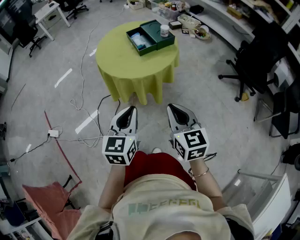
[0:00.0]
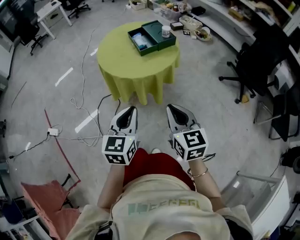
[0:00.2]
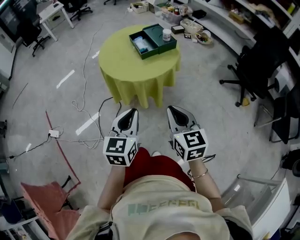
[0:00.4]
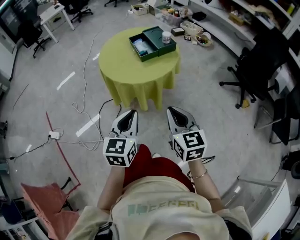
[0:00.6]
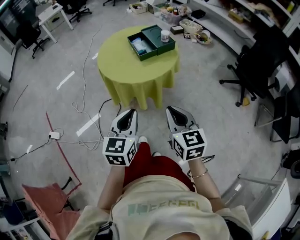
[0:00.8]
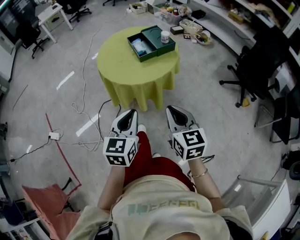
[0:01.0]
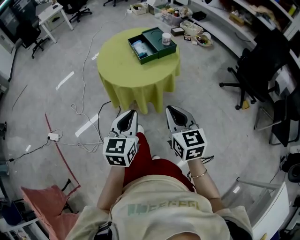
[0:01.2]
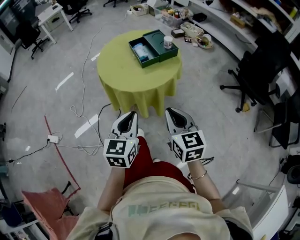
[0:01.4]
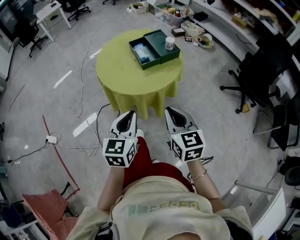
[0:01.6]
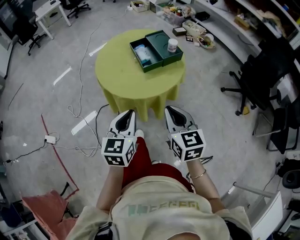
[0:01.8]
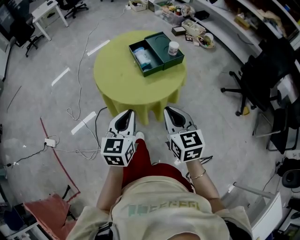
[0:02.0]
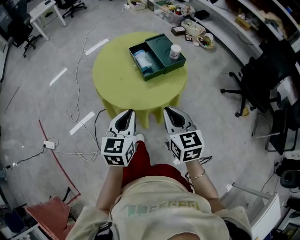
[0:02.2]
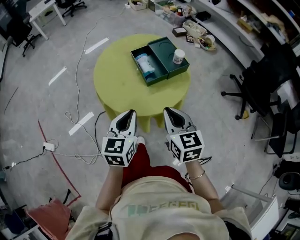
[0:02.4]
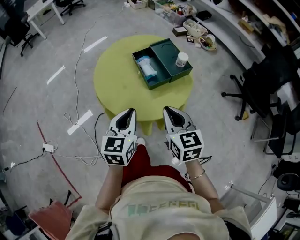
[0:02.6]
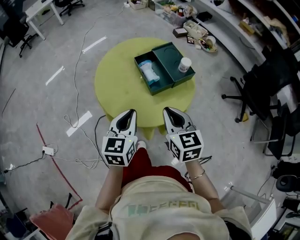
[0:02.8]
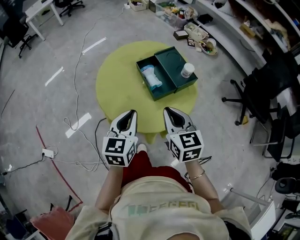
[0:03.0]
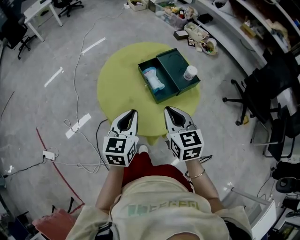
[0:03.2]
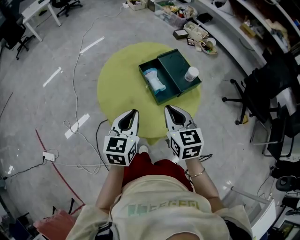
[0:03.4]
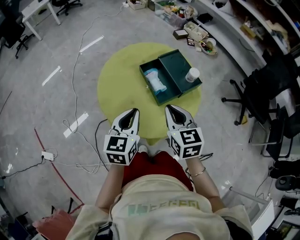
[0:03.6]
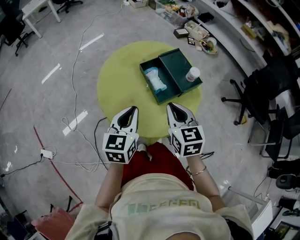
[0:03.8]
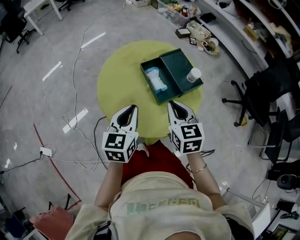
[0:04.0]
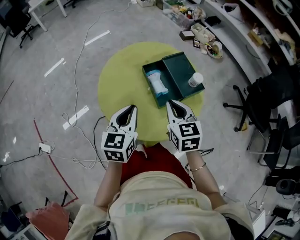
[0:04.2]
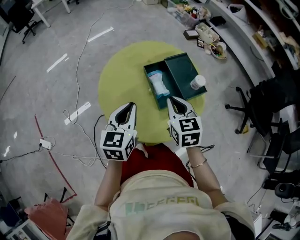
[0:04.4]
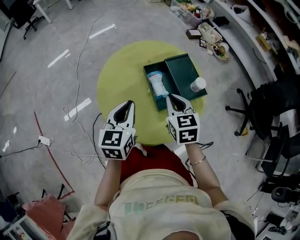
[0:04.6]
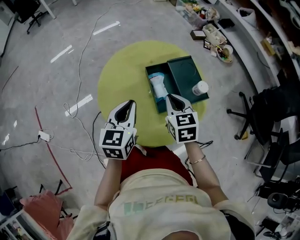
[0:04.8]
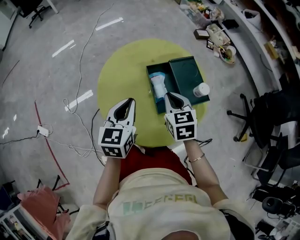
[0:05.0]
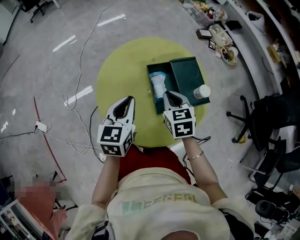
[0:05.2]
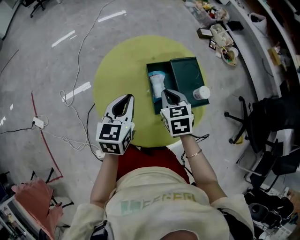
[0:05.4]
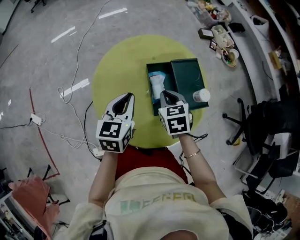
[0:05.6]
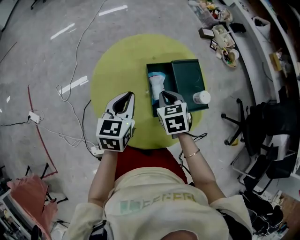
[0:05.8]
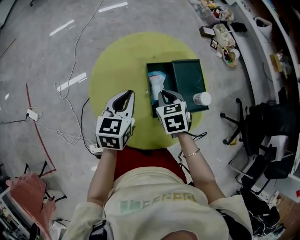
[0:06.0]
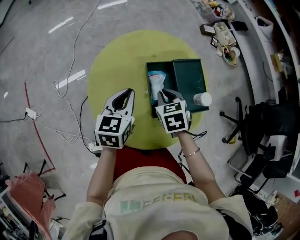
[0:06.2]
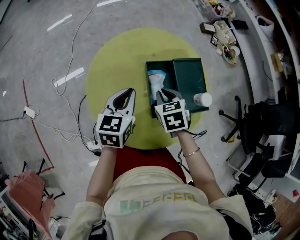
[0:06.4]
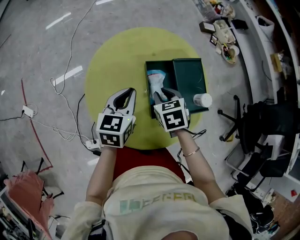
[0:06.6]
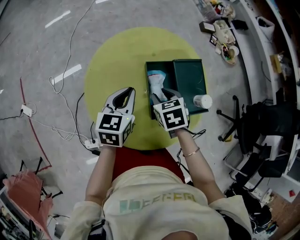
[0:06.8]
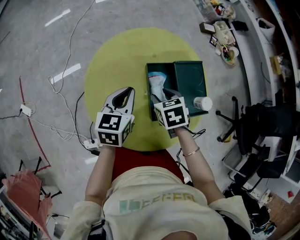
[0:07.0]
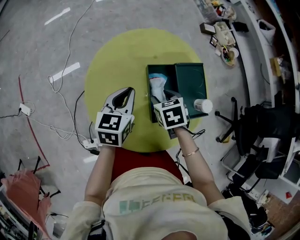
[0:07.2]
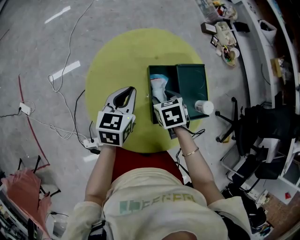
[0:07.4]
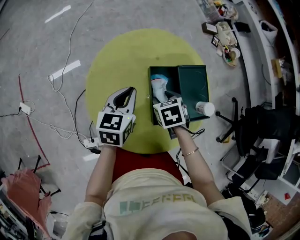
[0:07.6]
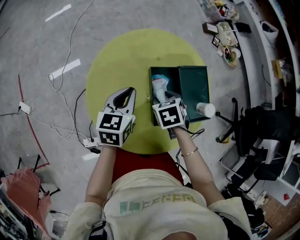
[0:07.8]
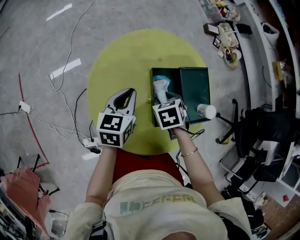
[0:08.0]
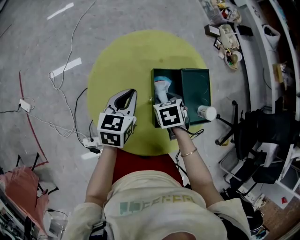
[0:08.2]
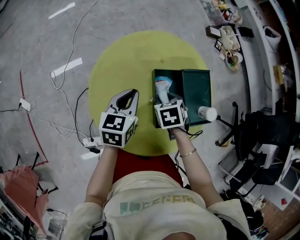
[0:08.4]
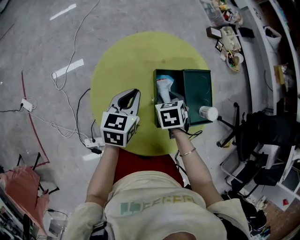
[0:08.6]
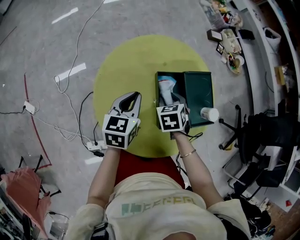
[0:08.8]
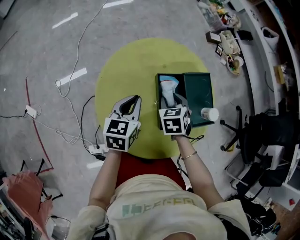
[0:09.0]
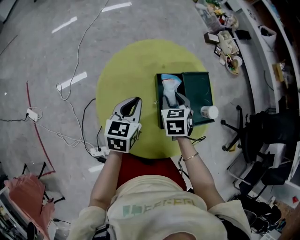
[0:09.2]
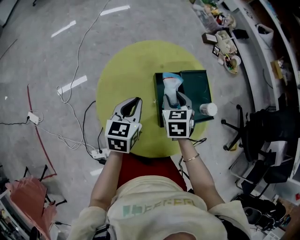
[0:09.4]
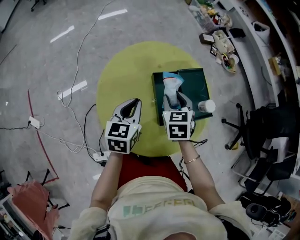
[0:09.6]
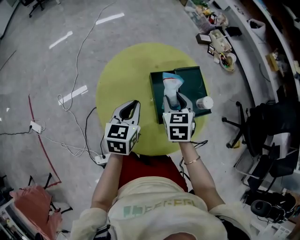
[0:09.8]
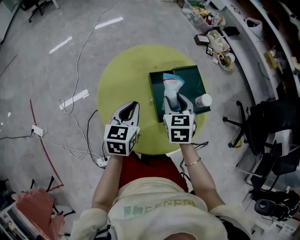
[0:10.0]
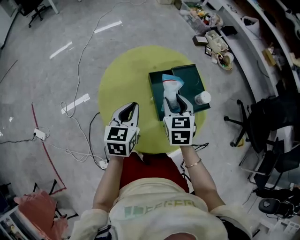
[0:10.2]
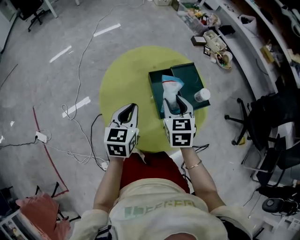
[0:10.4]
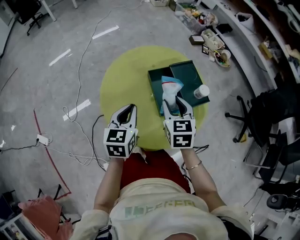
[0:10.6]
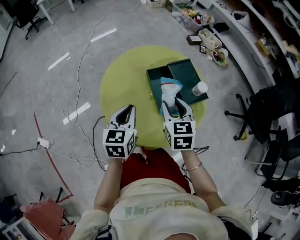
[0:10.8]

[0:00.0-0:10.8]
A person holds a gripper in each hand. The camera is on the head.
0:00.0 to 0:01.6: The two grippers go roughly 10 cm forward.
0:01.6 to 0:03.0: The grippers both shift forward by about 30 cm.
0:03.0 to 0:04.6: Both grippers move forward, some 15 cm.
0:04.6 to 0:06.2: The left gripper moves forward and downward, some 10 cm; the right gripper is displaced downward and forward by approximately 15 cm, and turns by some 30 degrees.
0:06.2 to 0:07.8: The left gripper shifts by about 5 cm; the right gripper shifts roughly 5 cm downward, and opens its fingers.
0:07.8 to 0:09.2: The right gripper changes place by about 5 cm, and turns by some 20 degrees.
0:09.2 to 0:10.8: Both grippers move backward and upward, approximately 15 cm. The right gripper changes its angle by roughly 20 degrees.

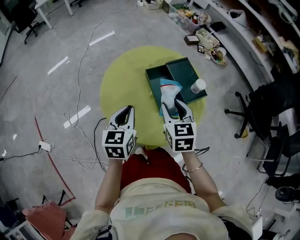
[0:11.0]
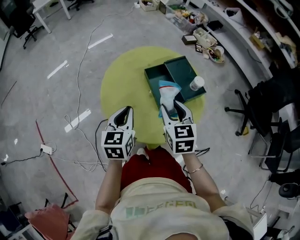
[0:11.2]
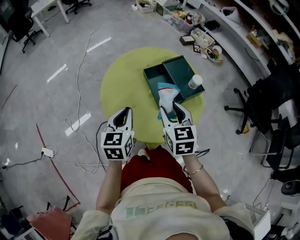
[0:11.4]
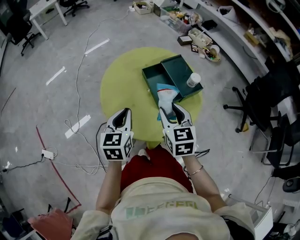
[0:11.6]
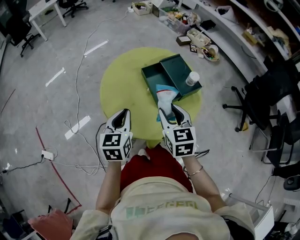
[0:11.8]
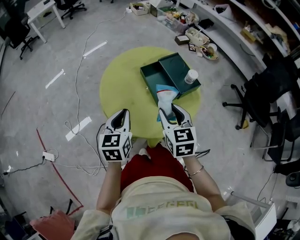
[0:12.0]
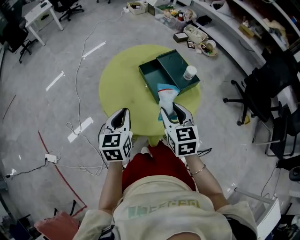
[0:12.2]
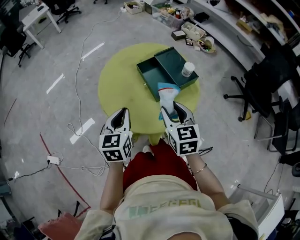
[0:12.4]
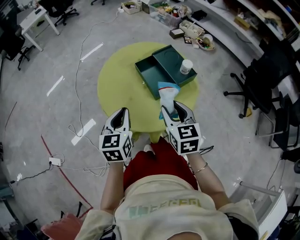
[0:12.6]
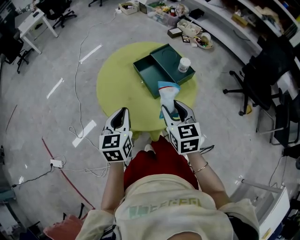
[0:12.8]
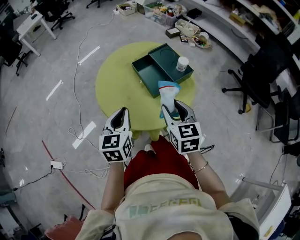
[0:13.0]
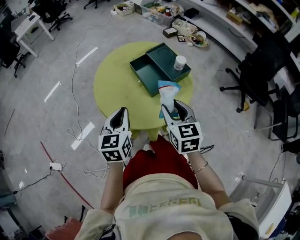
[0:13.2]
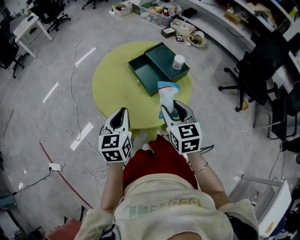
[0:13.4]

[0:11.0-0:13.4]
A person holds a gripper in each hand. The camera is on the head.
0:11.0 to 0:12.2: The two grippers go roughly 10 cm backward.
0:12.2 to 0:13.4: The right gripper shifts by about 5 cm.

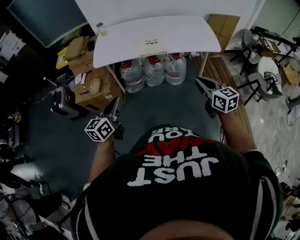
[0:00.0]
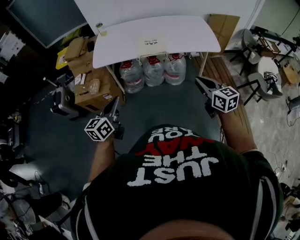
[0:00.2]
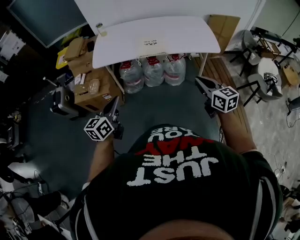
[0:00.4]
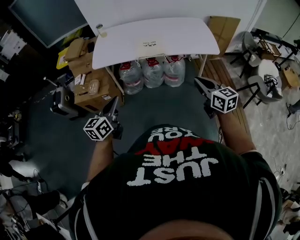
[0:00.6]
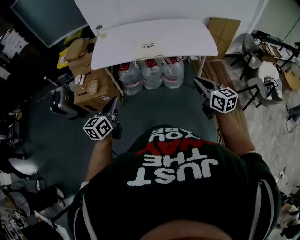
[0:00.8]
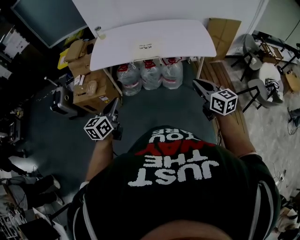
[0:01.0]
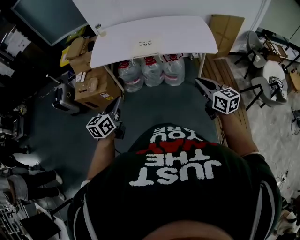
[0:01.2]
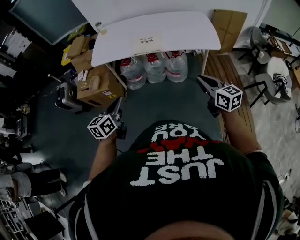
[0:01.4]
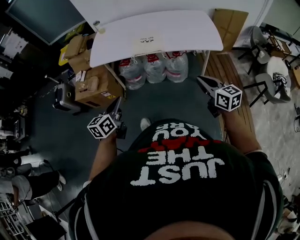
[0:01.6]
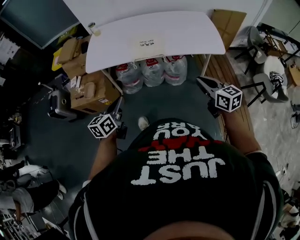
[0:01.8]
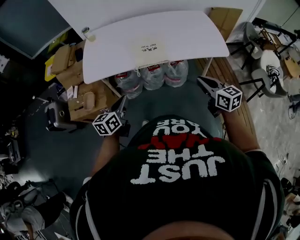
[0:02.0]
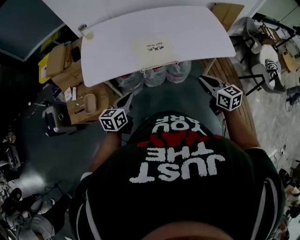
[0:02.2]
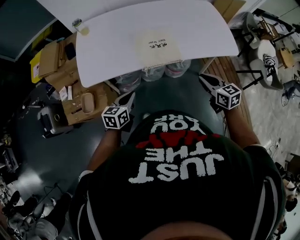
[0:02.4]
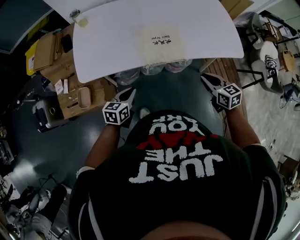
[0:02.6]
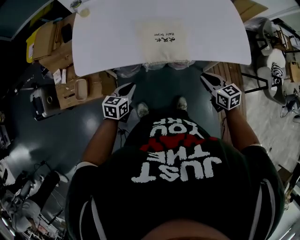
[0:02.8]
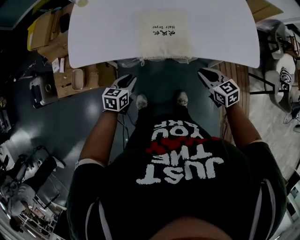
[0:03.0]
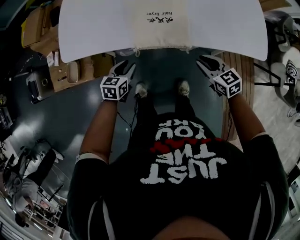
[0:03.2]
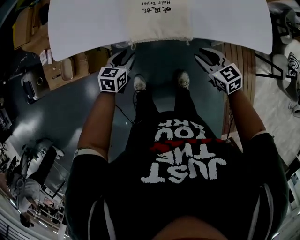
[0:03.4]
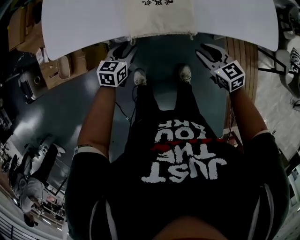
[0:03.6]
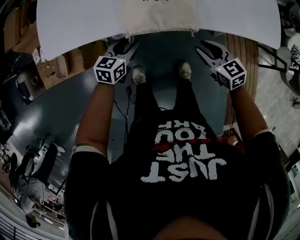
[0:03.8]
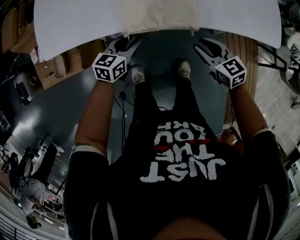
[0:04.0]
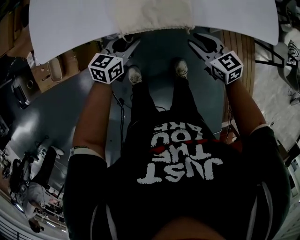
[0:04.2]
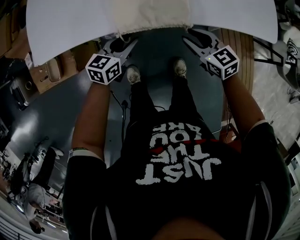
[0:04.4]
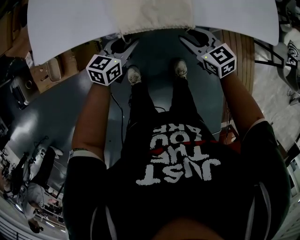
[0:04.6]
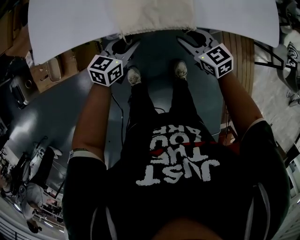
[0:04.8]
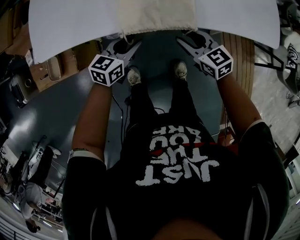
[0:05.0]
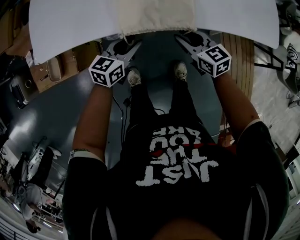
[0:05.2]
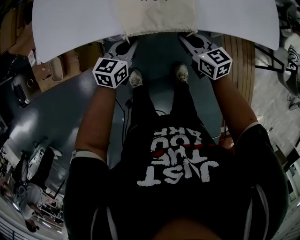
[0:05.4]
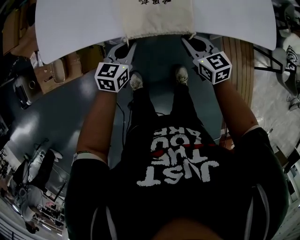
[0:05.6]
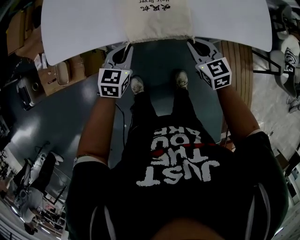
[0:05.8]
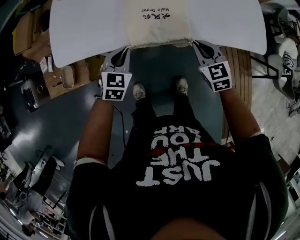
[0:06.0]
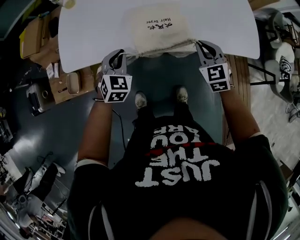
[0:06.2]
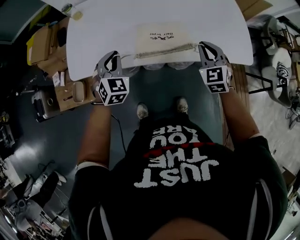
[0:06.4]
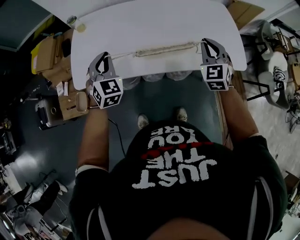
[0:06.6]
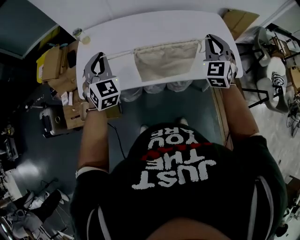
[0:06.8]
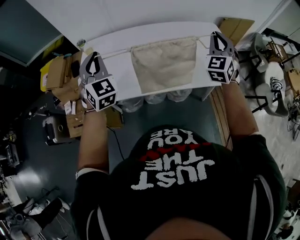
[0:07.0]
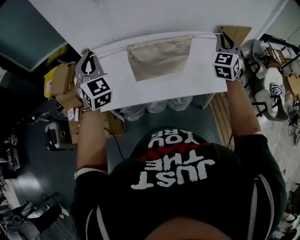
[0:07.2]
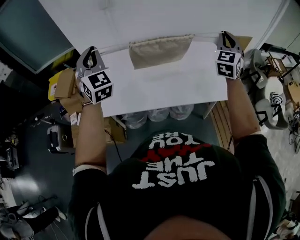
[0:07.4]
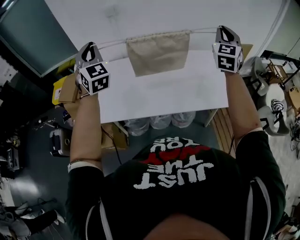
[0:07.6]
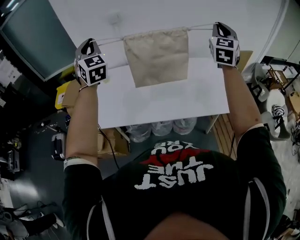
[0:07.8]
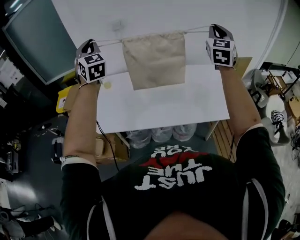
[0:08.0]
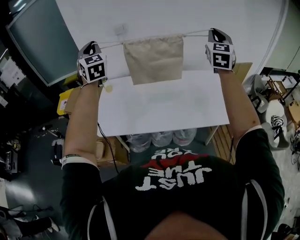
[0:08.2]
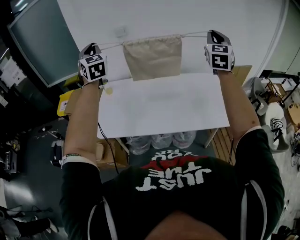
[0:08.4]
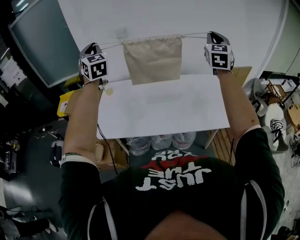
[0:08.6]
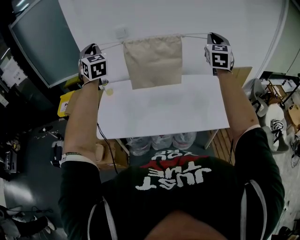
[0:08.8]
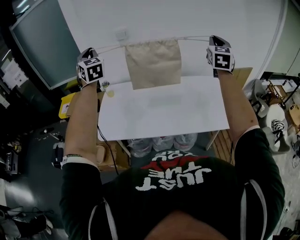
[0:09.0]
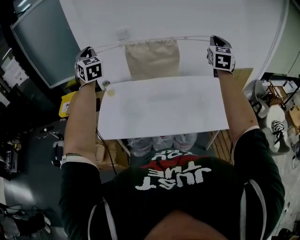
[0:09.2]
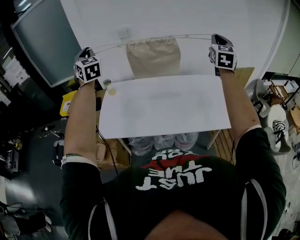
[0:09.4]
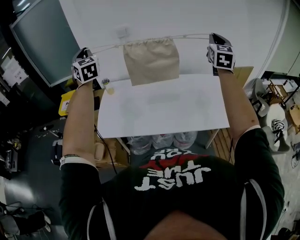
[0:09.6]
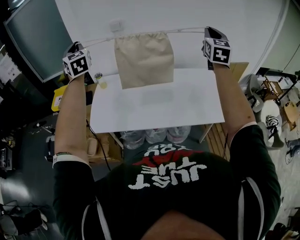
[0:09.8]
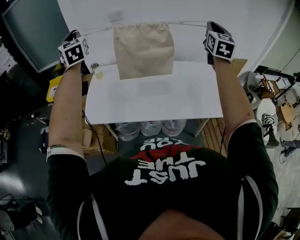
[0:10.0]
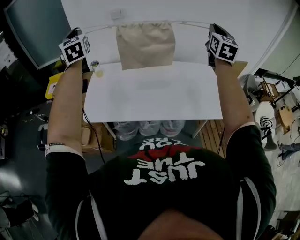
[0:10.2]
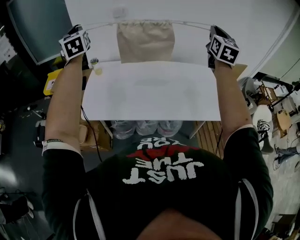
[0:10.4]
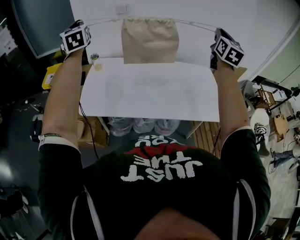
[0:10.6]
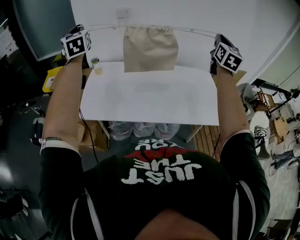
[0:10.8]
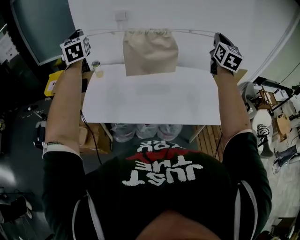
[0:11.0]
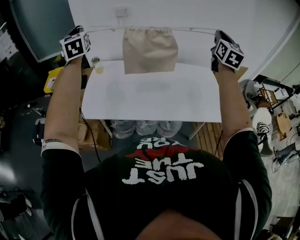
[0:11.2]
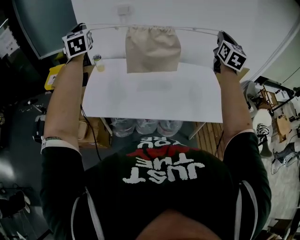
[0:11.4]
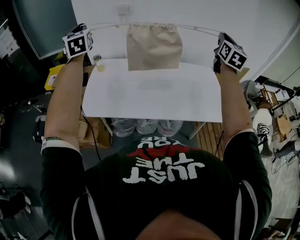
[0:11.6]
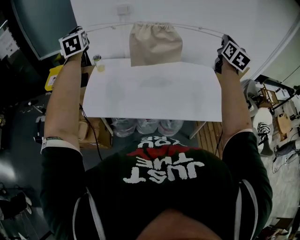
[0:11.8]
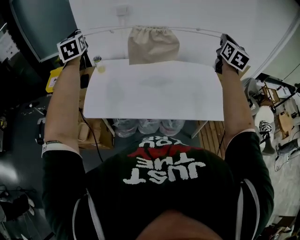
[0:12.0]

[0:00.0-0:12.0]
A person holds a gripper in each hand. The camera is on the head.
0:00.0 to 0:01.6: Both grippers move to the right, some 10 cm.
0:01.6 to 0:03.0: The grippers both shift forward and downward by about 40 cm. The left gripper turns by approximately 30 degrees, while the right gripper rotates some 30 degrees.
0:03.0 to 0:04.4: The left gripper is displaced to the right, forward and downward by some 10 cm; the right gripper travels downward by approximately 10 cm, and opens its fingers.
0:04.4 to 0:06.0: The right gripper heads upward, covering some 10 cm, swivels approximately 20 degrees, and closes its fingers; the left gripper moves upward and to the left, some 10 cm, swivels roughly 40 degrees, and closes its fingers.
0:06.0 to 0:07.6: Both grippers travel together upward, roughly 50 cm. The left gripper tilts its fingers about 50 degrees upward. The right gripper angles its fingers upward, by about 40 degrees.
0:07.6 to 0:09.0: The left gripper is displaced to the left, upward and forward by approximately 10 cm; the right gripper shifts approximately 5 cm upward.
0:09.0 to 0:10.4: The grippers move only a little.
0:10.4 to 0:12.0: The right gripper moves to the right, roughly 5 cm.
